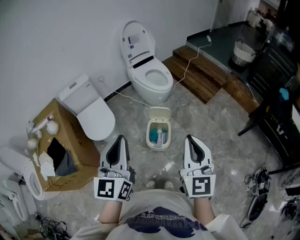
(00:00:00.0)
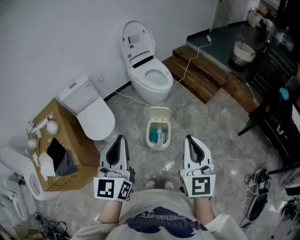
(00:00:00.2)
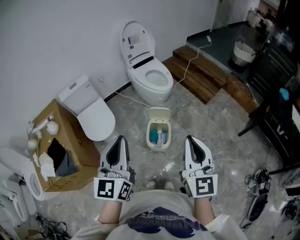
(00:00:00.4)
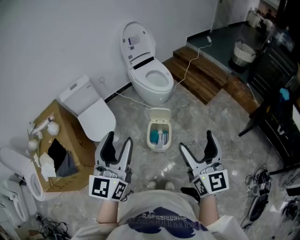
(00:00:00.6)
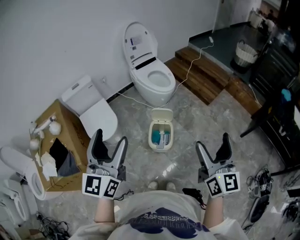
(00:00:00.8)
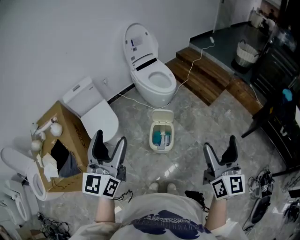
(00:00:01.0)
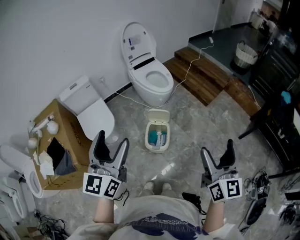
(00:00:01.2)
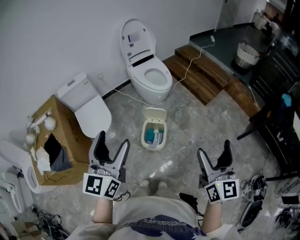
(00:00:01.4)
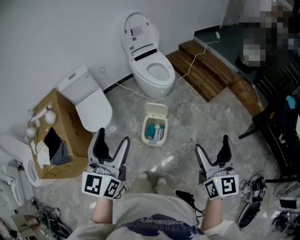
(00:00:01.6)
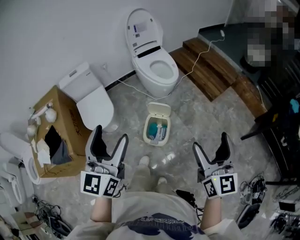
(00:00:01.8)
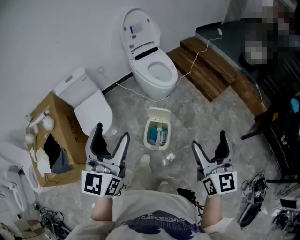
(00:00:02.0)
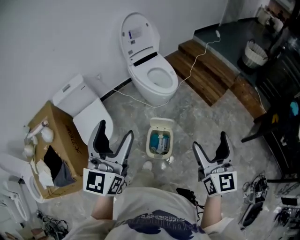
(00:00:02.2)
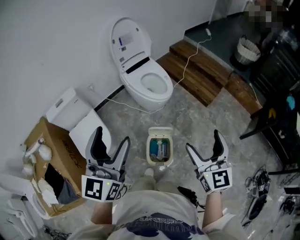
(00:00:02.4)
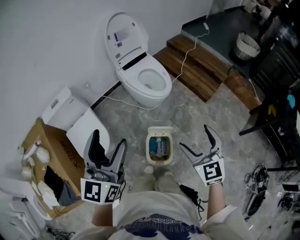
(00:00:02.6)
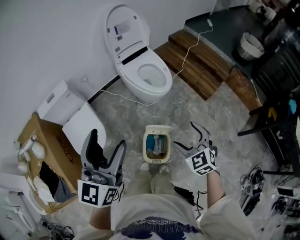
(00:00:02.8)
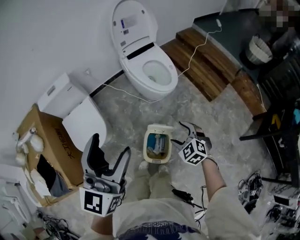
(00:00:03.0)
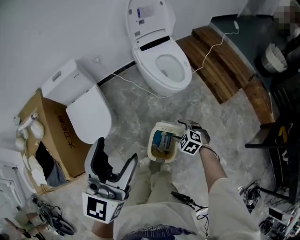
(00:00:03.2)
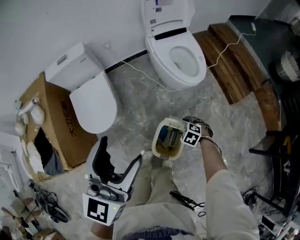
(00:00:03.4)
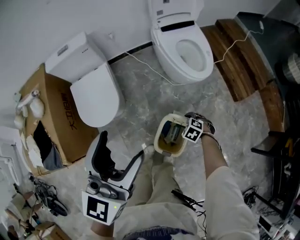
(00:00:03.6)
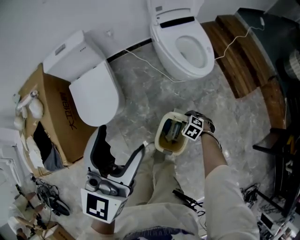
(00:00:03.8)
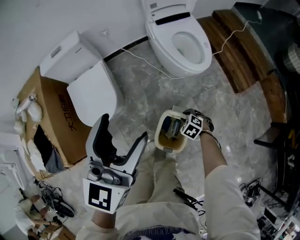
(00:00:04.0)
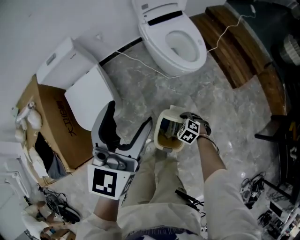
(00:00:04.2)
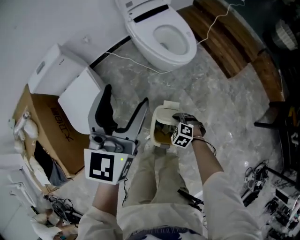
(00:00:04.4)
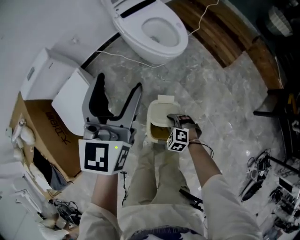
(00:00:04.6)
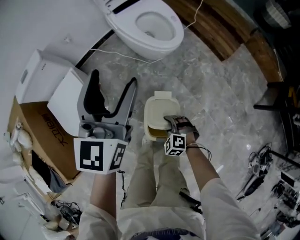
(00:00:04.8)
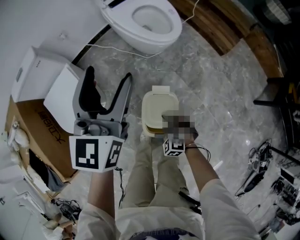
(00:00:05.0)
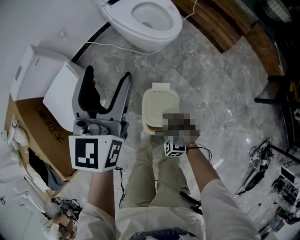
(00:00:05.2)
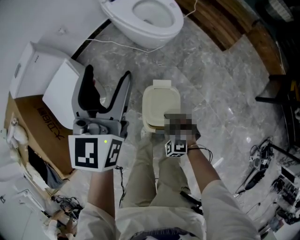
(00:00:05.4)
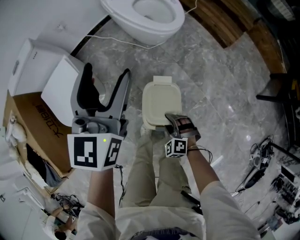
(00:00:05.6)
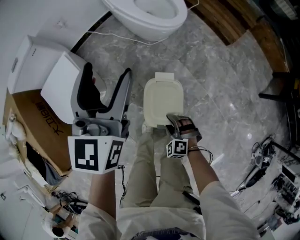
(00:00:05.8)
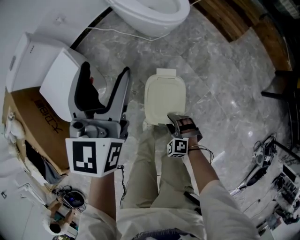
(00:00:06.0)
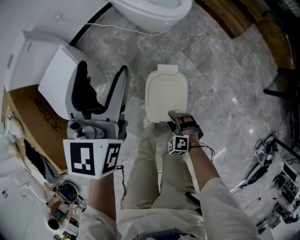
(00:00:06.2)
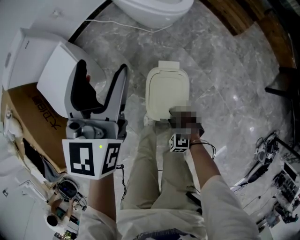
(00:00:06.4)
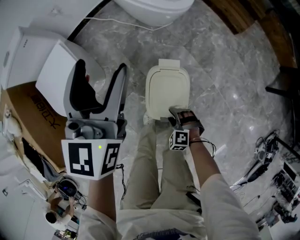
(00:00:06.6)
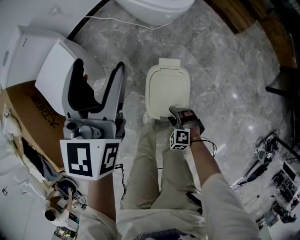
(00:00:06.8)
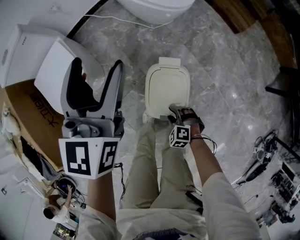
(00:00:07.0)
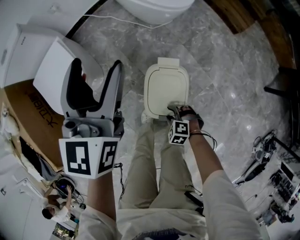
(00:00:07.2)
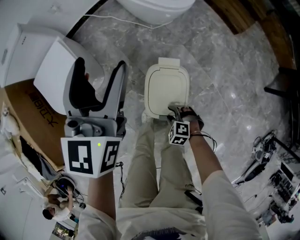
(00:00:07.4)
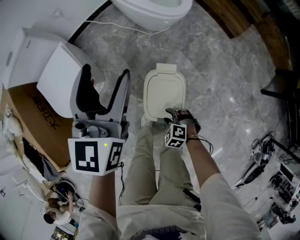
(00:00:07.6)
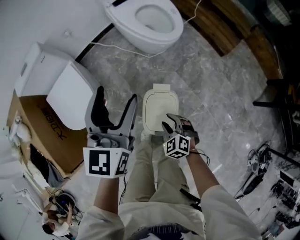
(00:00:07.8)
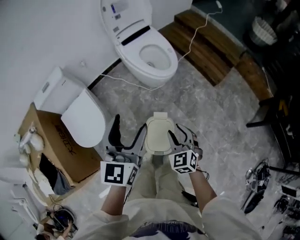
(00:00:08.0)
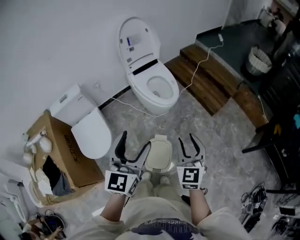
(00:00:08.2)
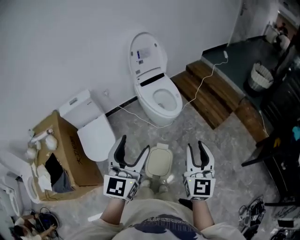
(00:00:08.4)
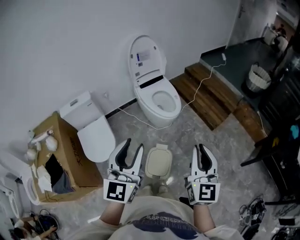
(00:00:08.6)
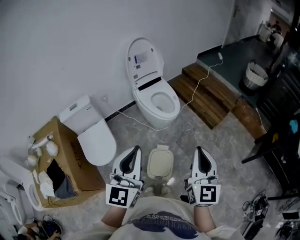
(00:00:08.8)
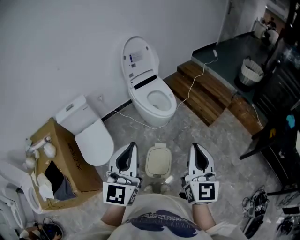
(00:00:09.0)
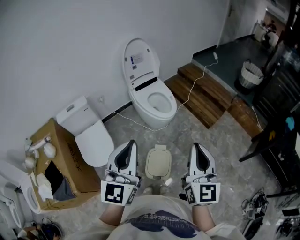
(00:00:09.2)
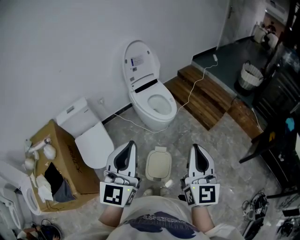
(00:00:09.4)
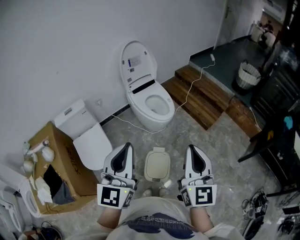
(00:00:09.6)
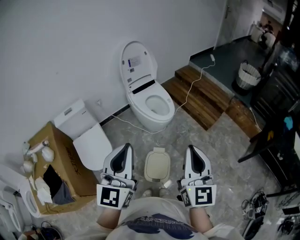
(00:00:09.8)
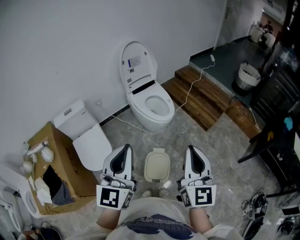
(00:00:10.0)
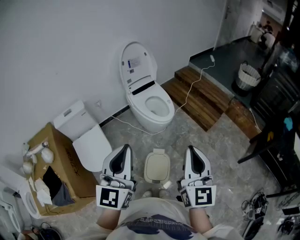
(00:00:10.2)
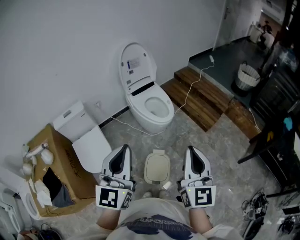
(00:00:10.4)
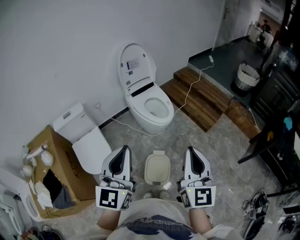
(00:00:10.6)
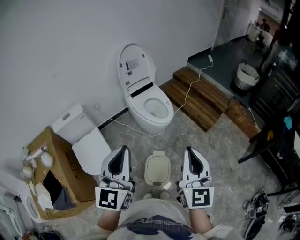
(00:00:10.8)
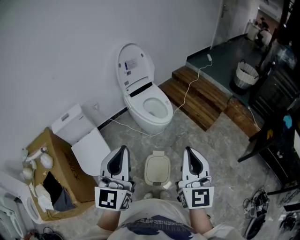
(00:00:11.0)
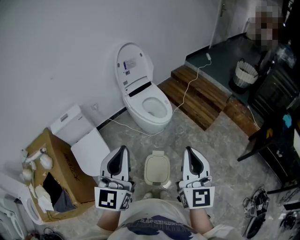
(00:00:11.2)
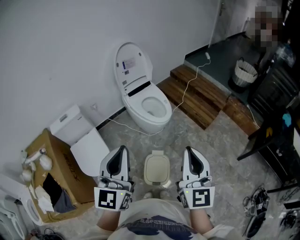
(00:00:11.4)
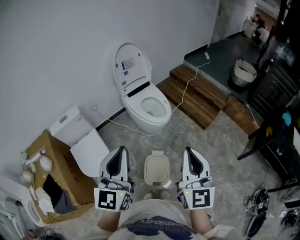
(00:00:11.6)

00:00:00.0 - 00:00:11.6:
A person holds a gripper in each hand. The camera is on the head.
00:00:00.0 - 00:00:01.4: The right gripper moves to the right, some 15 cm, and opens up; the left gripper opens.
00:00:01.4 - 00:00:02.8: The right gripper moves forward, downward and to the left, roughly 40 cm, and points its fingers approximately 40 degrees further downward, while the left gripper is displaced forward by approximately 25 cm.
00:00:02.8 - 00:00:04.4: The left gripper is displaced downward by some 15 cm, while the right gripper travels downward by roughly 35 cm, tips its fingers downward by about 30 degrees, and closes up.
00:00:04.4 - 00:00:05.8: The left gripper is displaced downward by approximately 10 cm. The right gripper goes about 15 cm backward and downward.
00:00:05.8 - 00:00:07.2: The left gripper moves downward, roughly 5 cm; the right gripper is displaced downward by about 10 cm, and swivels roughly 20 degrees.
00:00:07.2 - 00:00:08.8: The right gripper is displaced upward by approximately 70 cm, angles its fingers upward, by approximately 70 degrees, and closes up, while the left gripper travels upward by about 35 cm, swivels roughly 20 degrees, and closes.
00:00:08.8 - 00:00:11.6: The grippers move only a little.

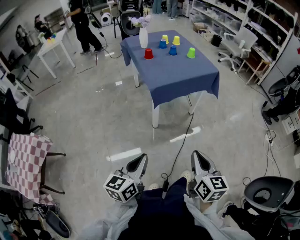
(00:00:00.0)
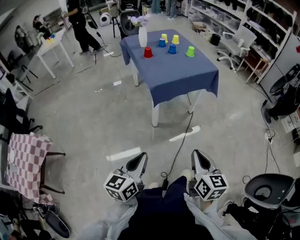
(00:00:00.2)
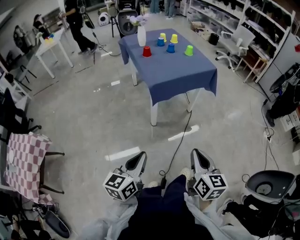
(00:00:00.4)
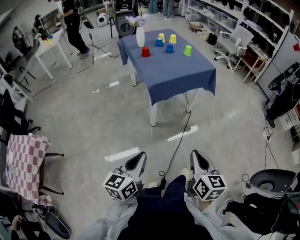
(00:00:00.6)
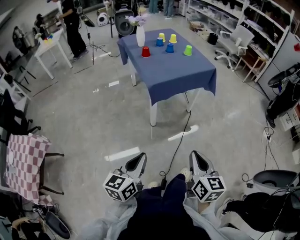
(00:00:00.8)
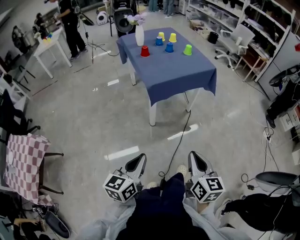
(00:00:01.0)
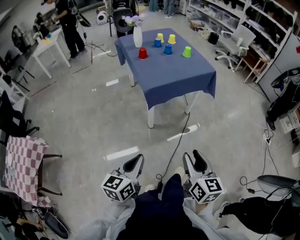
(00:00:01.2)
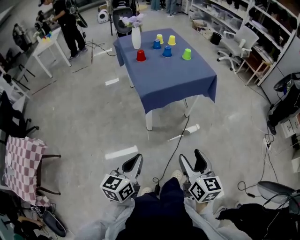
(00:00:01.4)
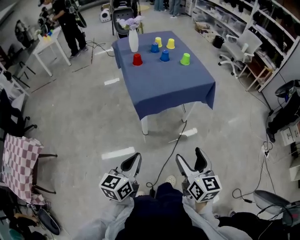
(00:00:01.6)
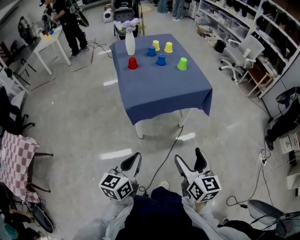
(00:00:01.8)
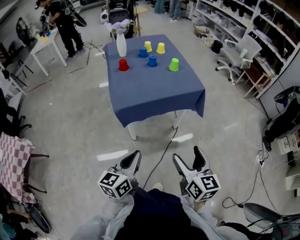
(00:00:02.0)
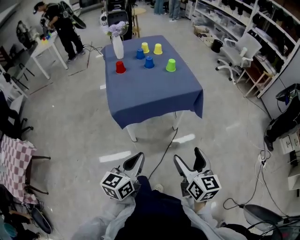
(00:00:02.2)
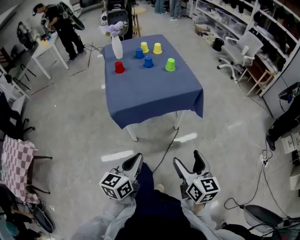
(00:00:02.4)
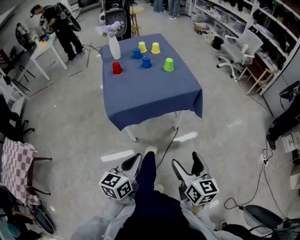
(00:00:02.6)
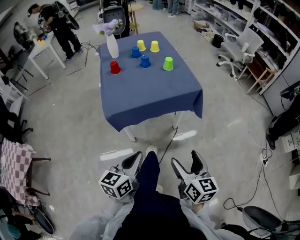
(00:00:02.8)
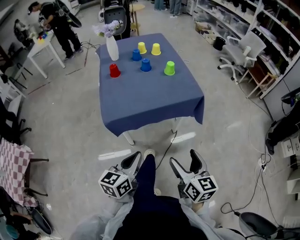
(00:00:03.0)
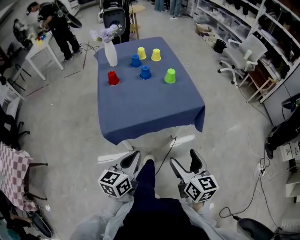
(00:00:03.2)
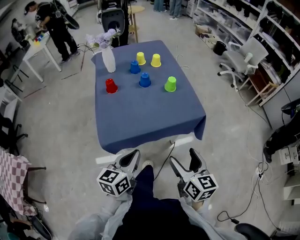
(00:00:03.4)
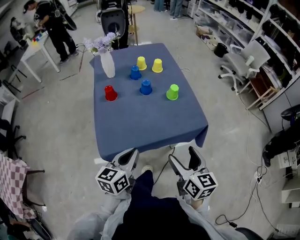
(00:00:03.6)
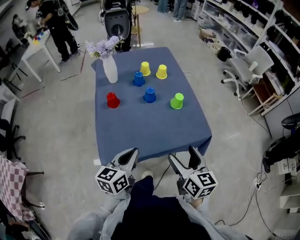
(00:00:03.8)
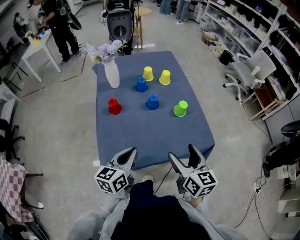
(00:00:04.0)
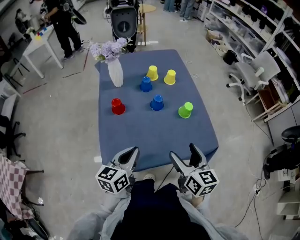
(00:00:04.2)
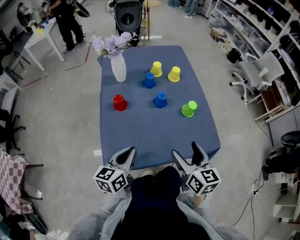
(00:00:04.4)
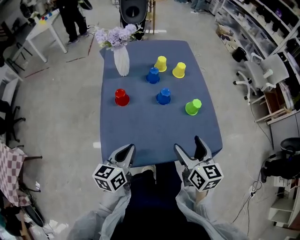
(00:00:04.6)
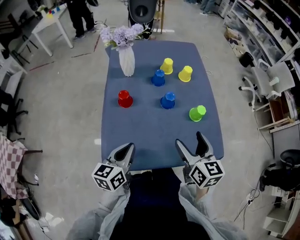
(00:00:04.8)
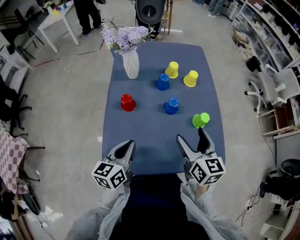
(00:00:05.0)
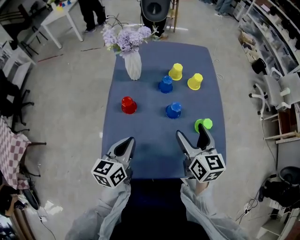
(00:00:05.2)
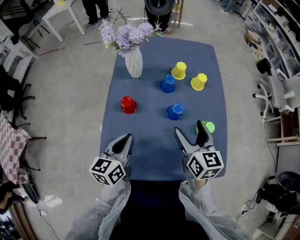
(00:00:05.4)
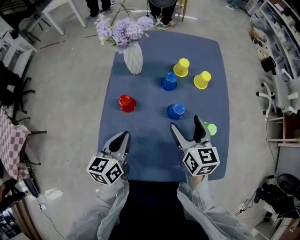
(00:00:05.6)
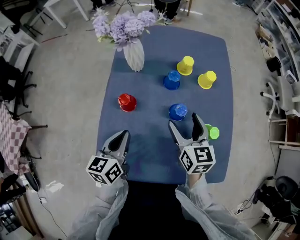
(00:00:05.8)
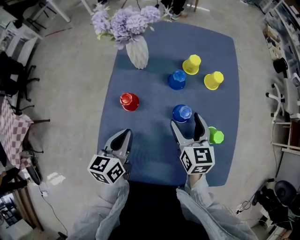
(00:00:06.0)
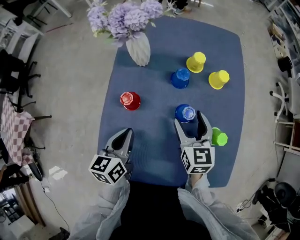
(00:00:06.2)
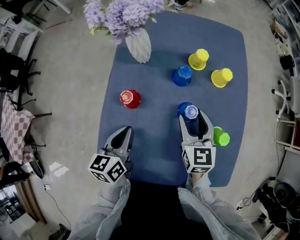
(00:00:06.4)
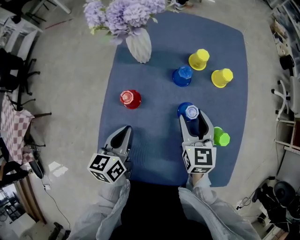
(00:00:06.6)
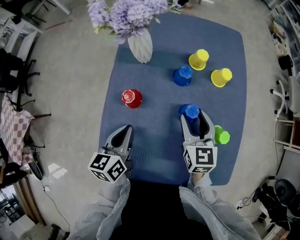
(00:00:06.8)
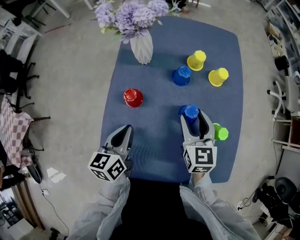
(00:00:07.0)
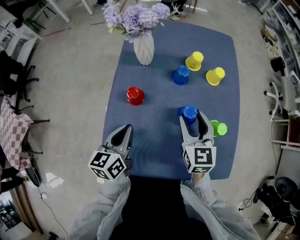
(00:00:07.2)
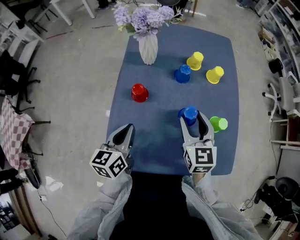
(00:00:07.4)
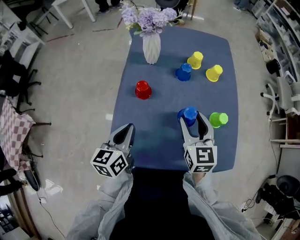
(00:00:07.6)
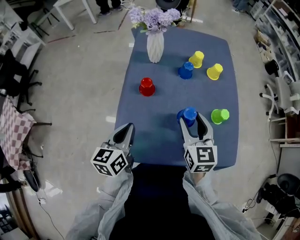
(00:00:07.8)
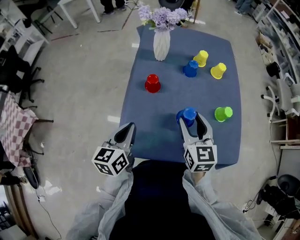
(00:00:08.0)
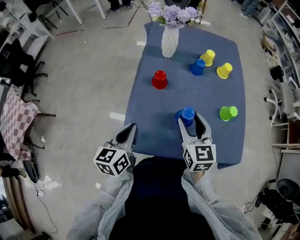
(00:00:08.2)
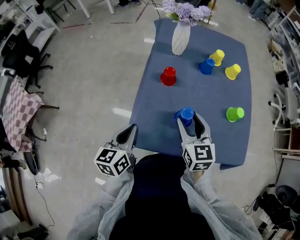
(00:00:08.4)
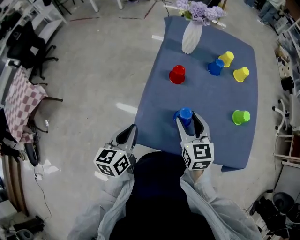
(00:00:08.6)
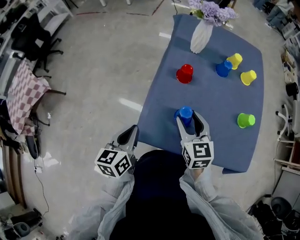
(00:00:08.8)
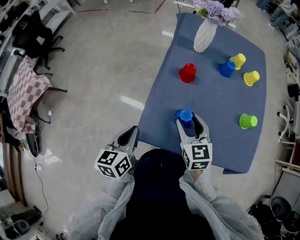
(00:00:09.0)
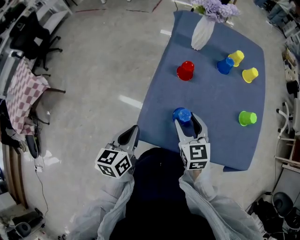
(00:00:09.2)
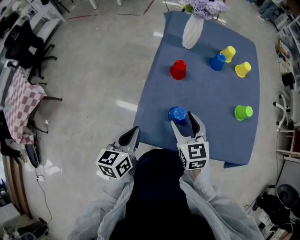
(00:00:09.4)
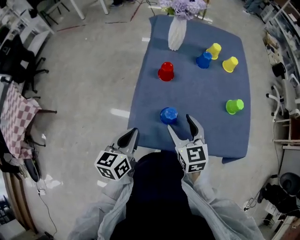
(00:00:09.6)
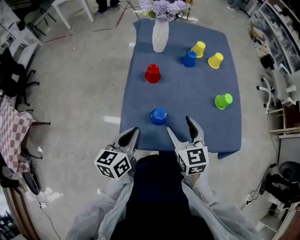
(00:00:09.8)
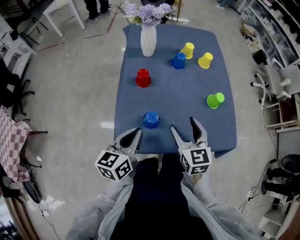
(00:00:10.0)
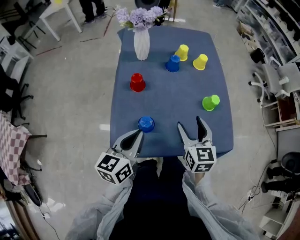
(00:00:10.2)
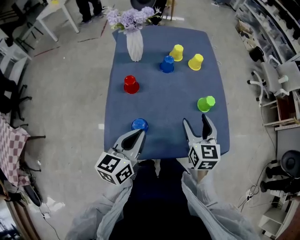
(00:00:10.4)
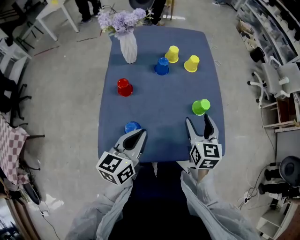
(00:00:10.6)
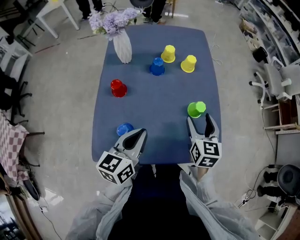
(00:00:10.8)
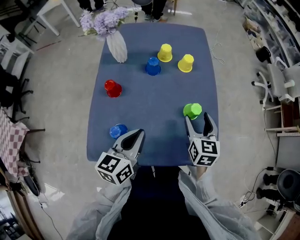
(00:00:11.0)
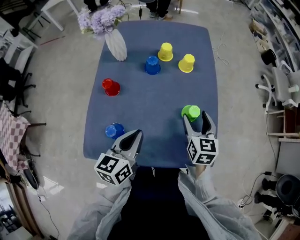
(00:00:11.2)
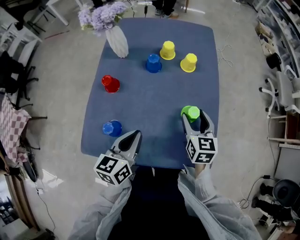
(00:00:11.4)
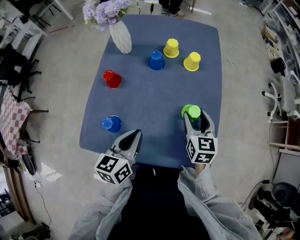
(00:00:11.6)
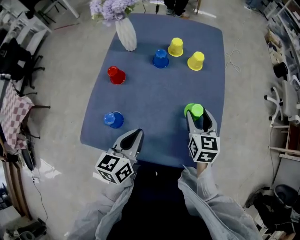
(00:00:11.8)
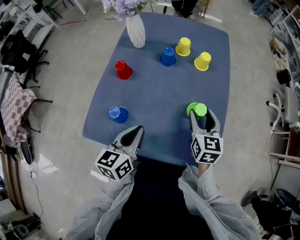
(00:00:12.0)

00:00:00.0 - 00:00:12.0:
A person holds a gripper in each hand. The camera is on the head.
00:00:00.0 - 00:00:01.6: Both grippers move forward and to the right, about 15 cm. The right gripper opens.
00:00:01.6 - 00:00:03.0: The grippers both shift forward and to the right by approximately 20 cm.
00:00:03.0 - 00:00:04.4: The grippers both shift forward by about 35 cm.
00:00:04.4 - 00:00:06.0: The left gripper goes roughly 15 cm forward, and changes its angle by some 20 degrees. The right gripper heads forward, covering roughly 25 cm.
00:00:06.0 - 00:00:07.6: The left gripper moves backward, approximately 5 cm, while the right gripper shifts roughly 10 cm backward and upward, and closes its fingers.
00:00:07.6 - 00:00:09.0: The right gripper heads to the left, backward and downward, covering roughly 20 cm. The left gripper goes roughly 15 cm backward and to the left.
00:00:09.0 - 00:00:10.4: The left gripper ends up approximately 20 cm from where it was, and rotates approximately 30 degrees, while the right gripper changes place by some 25 cm, and rotates some 30 degrees.
00:00:10.4 - 00:00:12.0: The right gripper moves forward and to the right, about 10 cm. Meanwhile the left gripper is displaced to the right and downward by roughly 10 cm.
